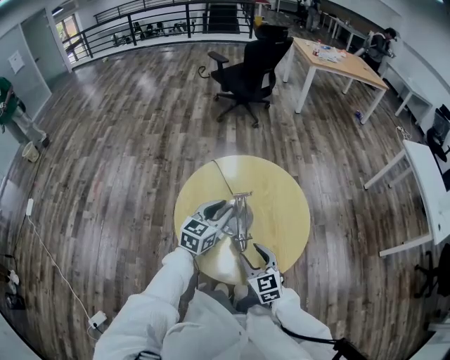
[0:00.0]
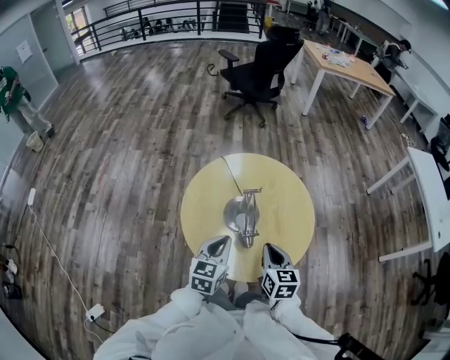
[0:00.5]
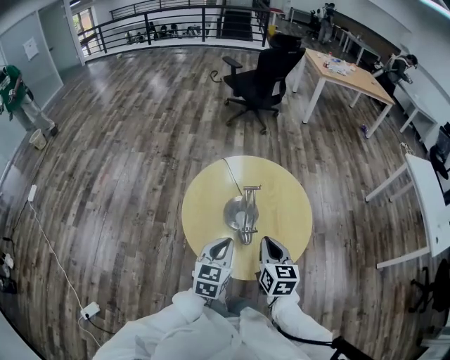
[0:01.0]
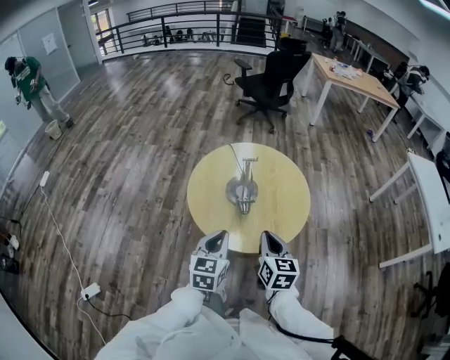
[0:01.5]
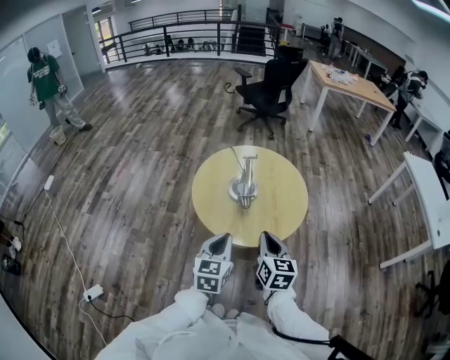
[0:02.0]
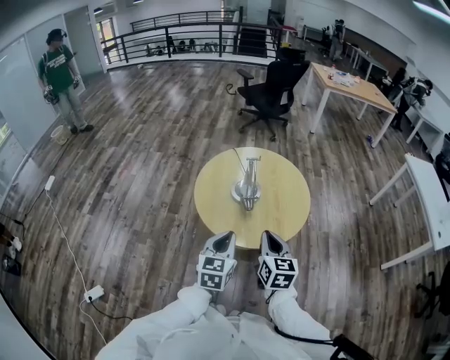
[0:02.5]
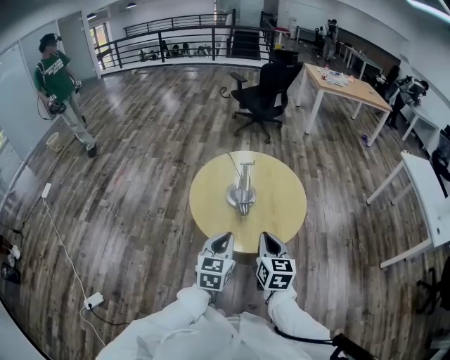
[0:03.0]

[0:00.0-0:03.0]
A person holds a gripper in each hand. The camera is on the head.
0:00.0 to 0:01.5: The left gripper goes roughly 25 cm backward, turns by approximately 20 degrees, and closes its fingers; the right gripper is displaced backward, upward and to the right by approximately 15 cm, rotates about 20 degrees, and closes.

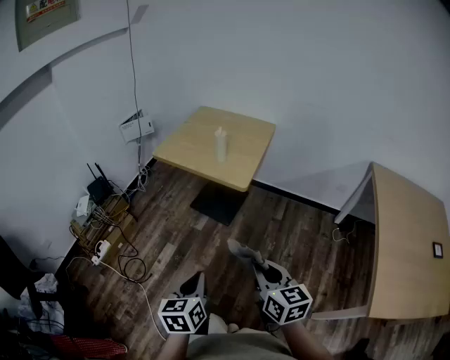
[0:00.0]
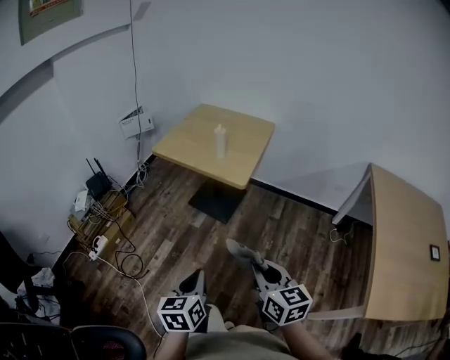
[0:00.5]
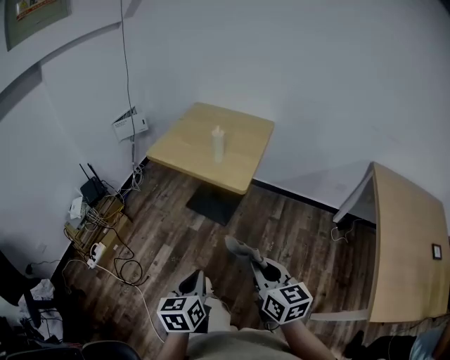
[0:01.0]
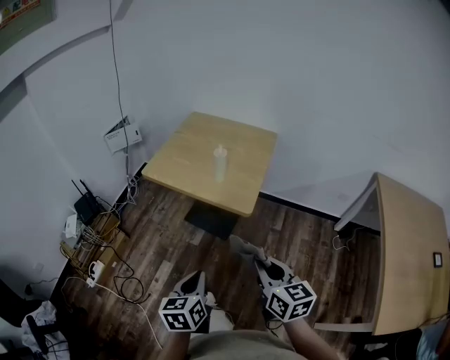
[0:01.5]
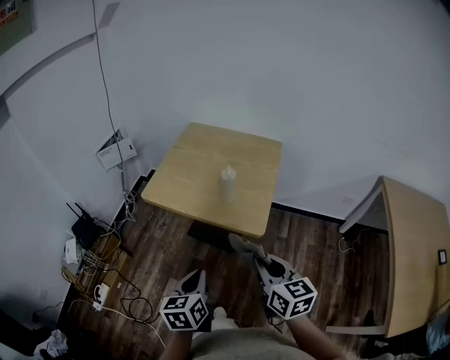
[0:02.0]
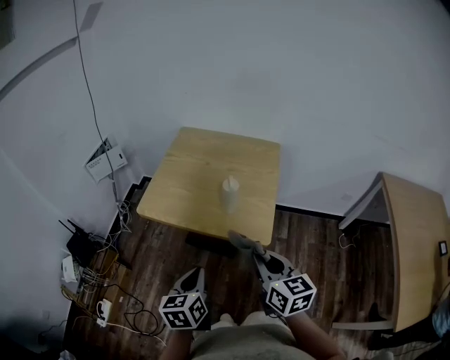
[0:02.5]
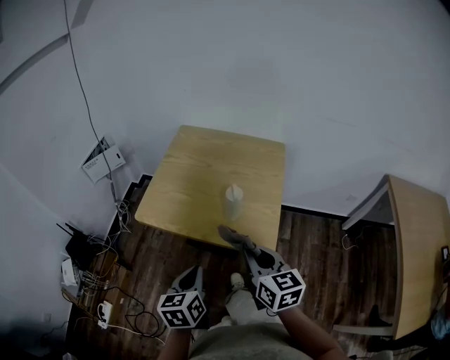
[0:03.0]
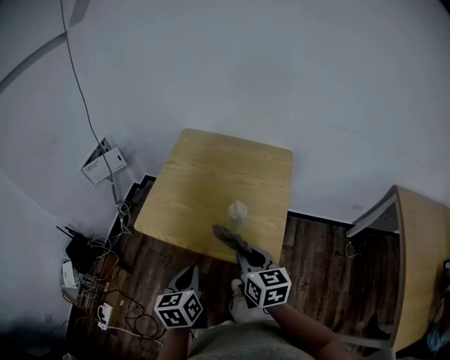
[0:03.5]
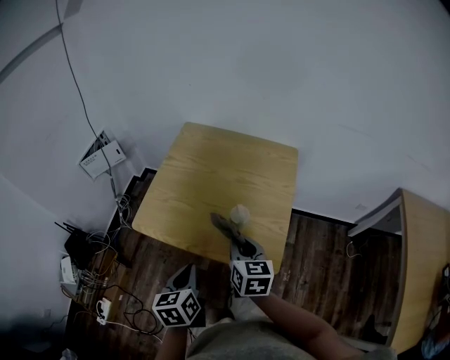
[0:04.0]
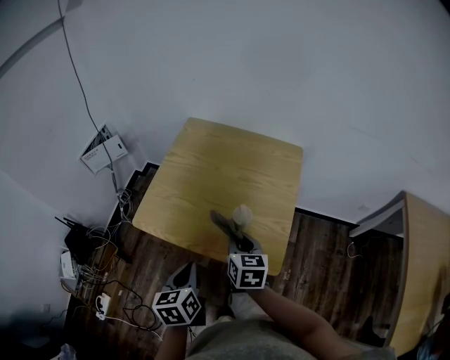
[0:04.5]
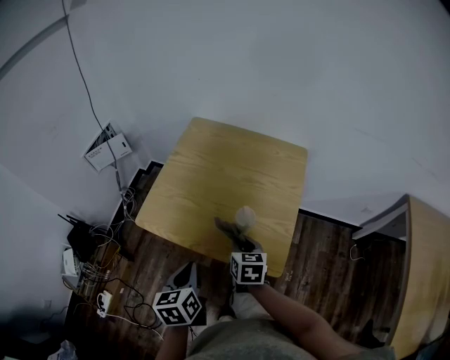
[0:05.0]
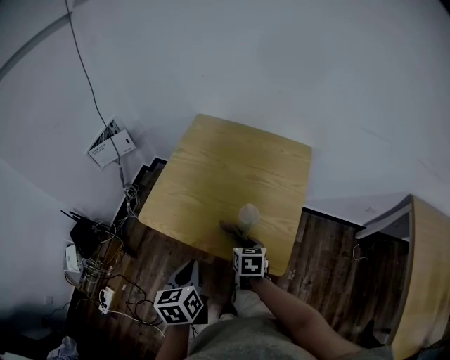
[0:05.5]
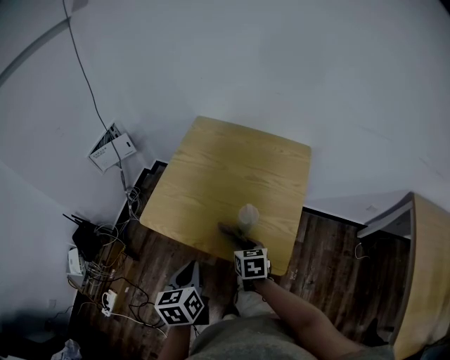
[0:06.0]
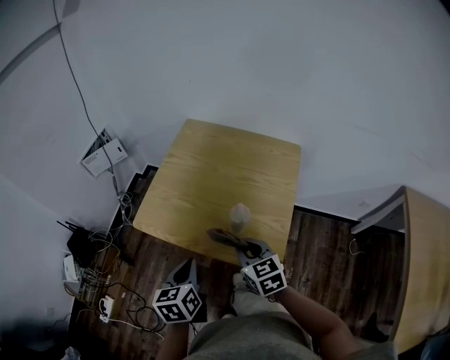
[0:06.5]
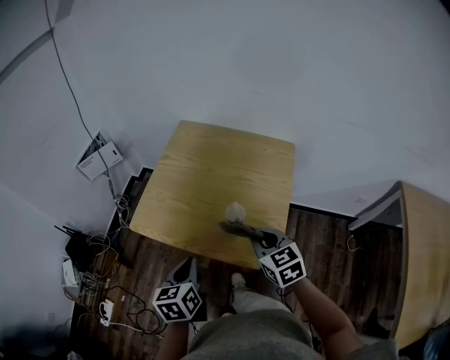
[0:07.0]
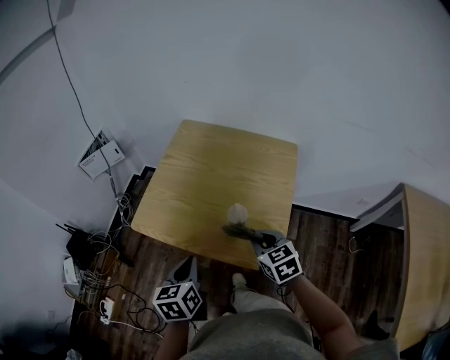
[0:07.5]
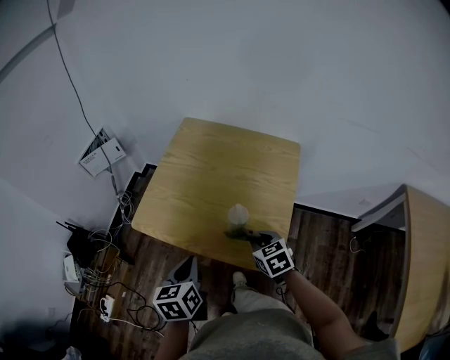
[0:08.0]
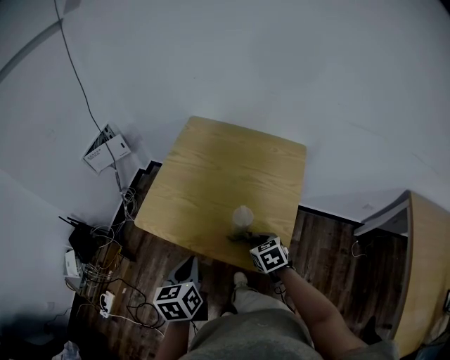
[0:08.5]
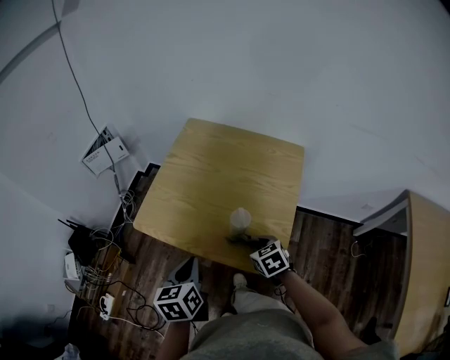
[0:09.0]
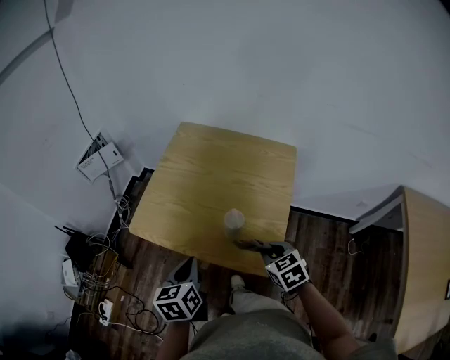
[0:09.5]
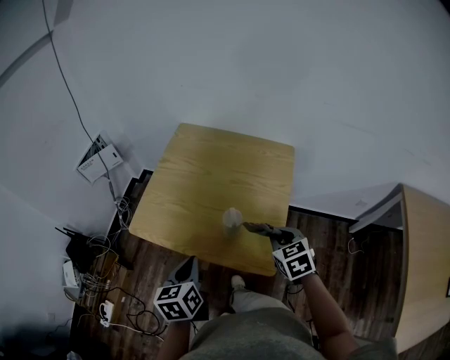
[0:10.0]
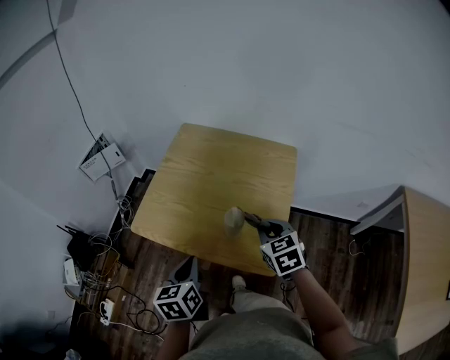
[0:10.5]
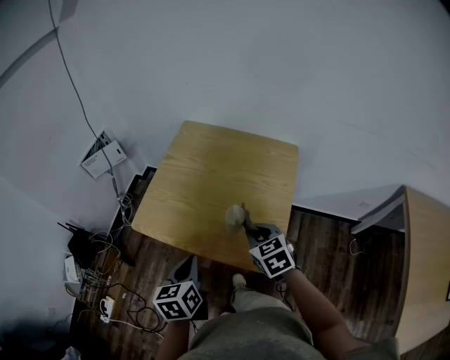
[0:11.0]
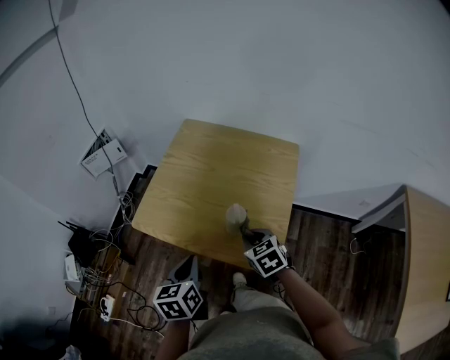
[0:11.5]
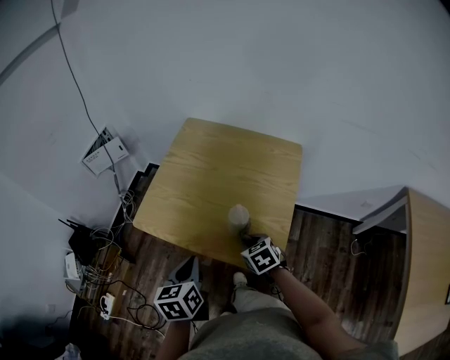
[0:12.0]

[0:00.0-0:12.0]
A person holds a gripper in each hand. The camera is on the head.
0:00.0 to 0:02.0: Both grippers travel together forward, some 30 cm.
0:02.0 to 0:04.0: The grippers both shift forward by roughly 25 cm.
0:04.0 to 0:06.0: The right gripper travels downward by some 10 cm, and turns by some 20 degrees.
0:06.0 to 0:08.0: The right gripper moves to the right, some 5 cm, and reaches some 15 cm upward, then returns.
0:08.0 to 0:10.0: The right gripper goes about 10 cm to the right and upward.
0:10.0 to 0:12.0: The right gripper moves to the left and downward, about 15 cm.

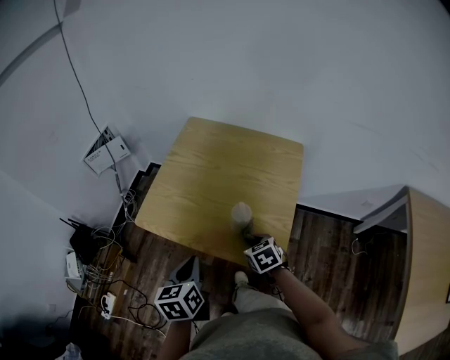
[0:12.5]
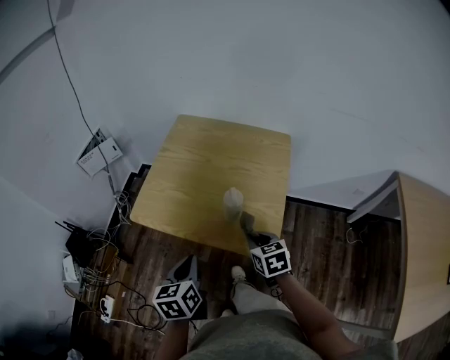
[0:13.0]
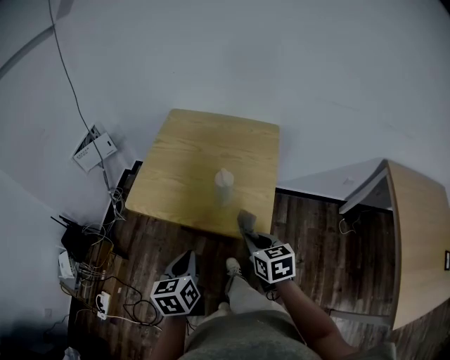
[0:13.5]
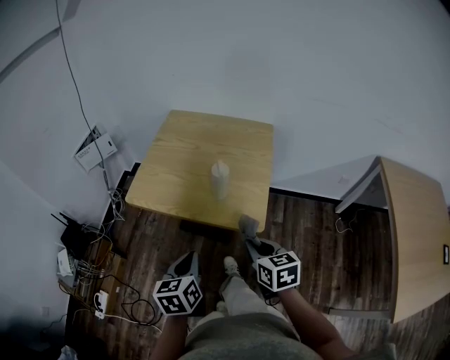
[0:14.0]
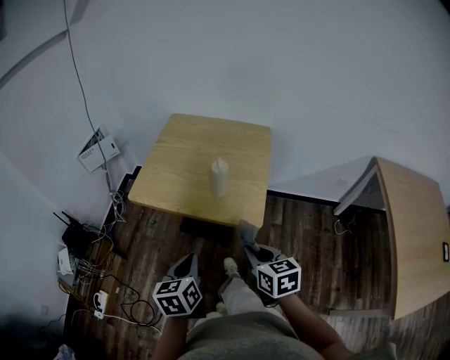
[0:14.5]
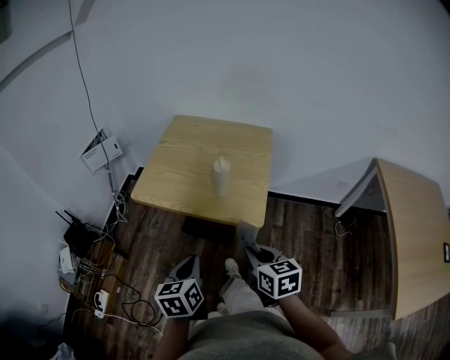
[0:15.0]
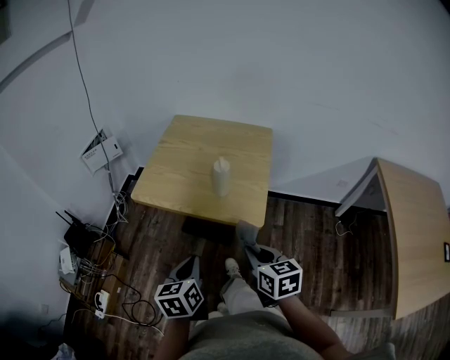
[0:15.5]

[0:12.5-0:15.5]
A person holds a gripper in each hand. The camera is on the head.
0:12.5 to 0:14.0: The right gripper is displaced backward and upward by roughly 20 cm, and rotates approximately 30 degrees, while the left gripper heads backward, covering approximately 15 cm.
0:14.0 to 0:15.5: The left gripper moves about 5 cm, while the right gripper travels backward by roughly 5 cm.

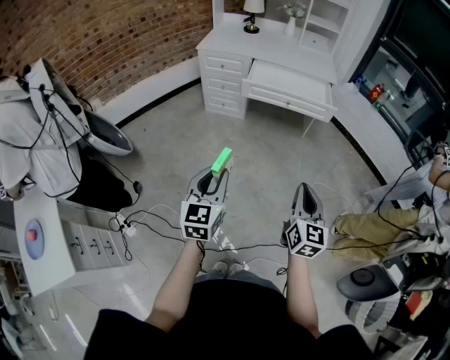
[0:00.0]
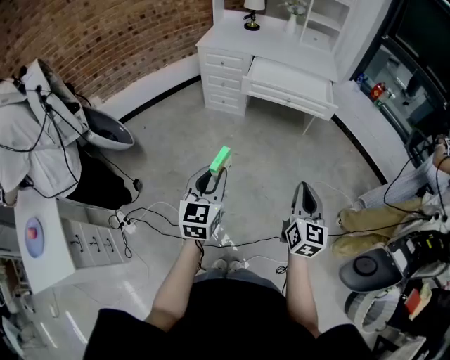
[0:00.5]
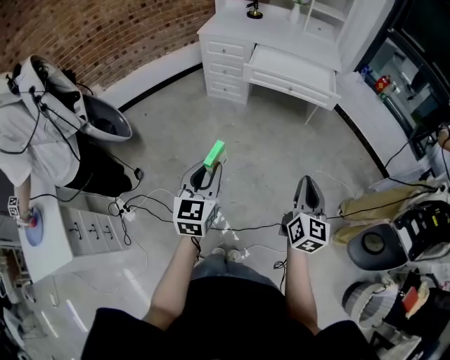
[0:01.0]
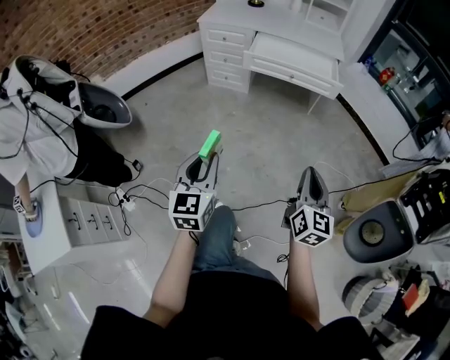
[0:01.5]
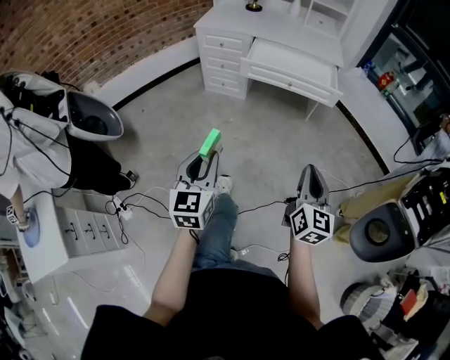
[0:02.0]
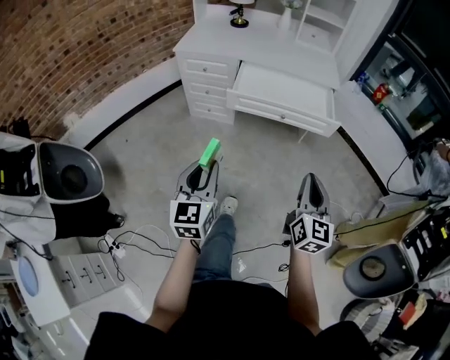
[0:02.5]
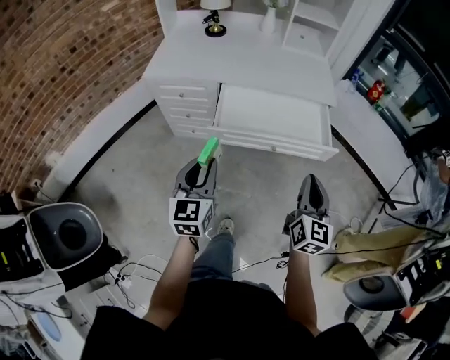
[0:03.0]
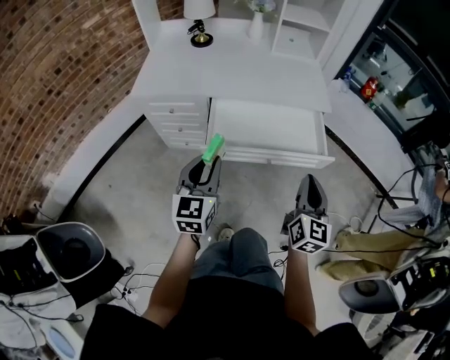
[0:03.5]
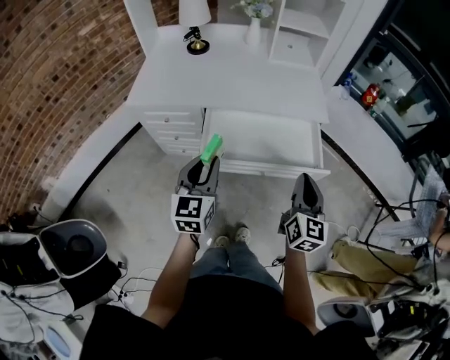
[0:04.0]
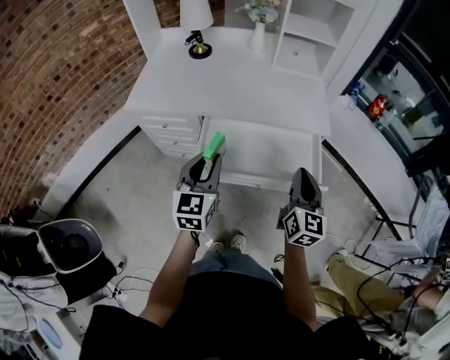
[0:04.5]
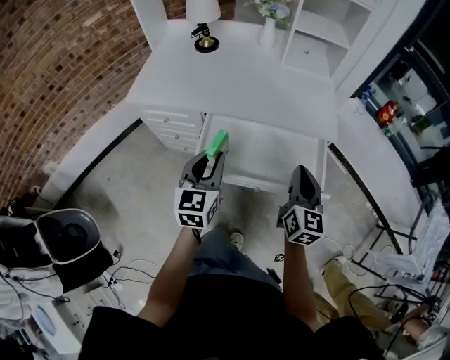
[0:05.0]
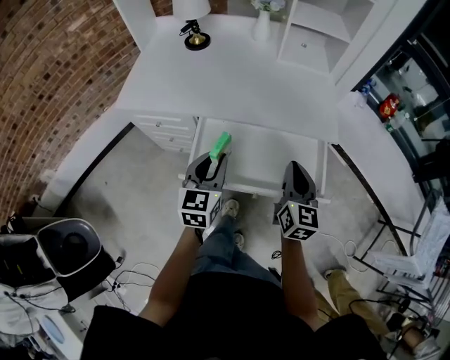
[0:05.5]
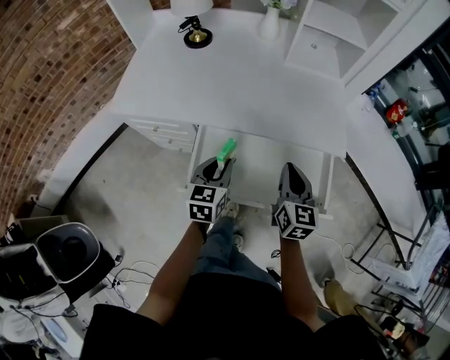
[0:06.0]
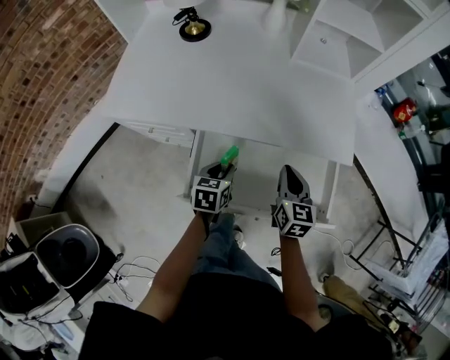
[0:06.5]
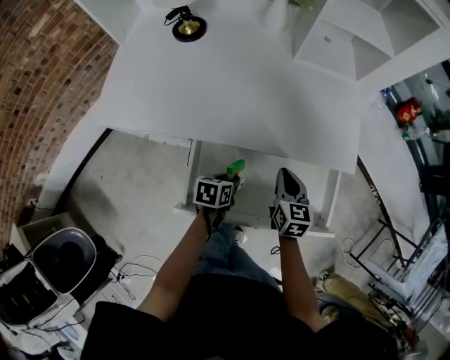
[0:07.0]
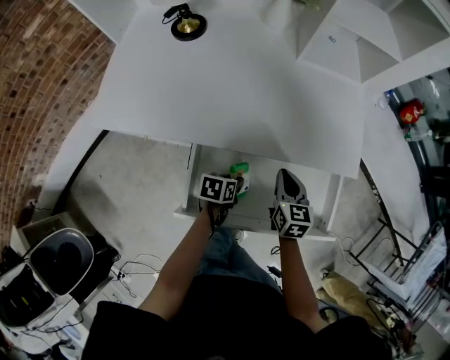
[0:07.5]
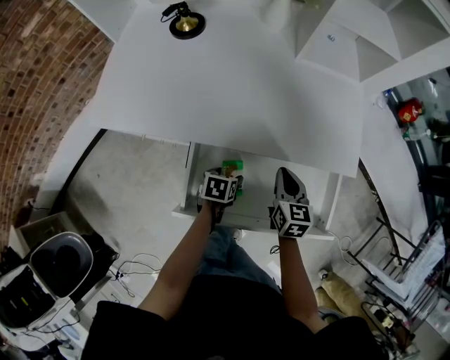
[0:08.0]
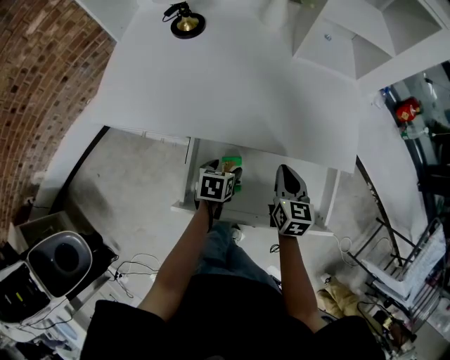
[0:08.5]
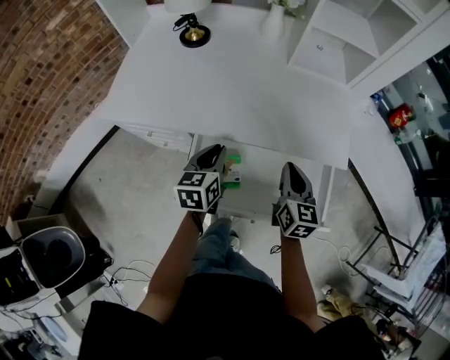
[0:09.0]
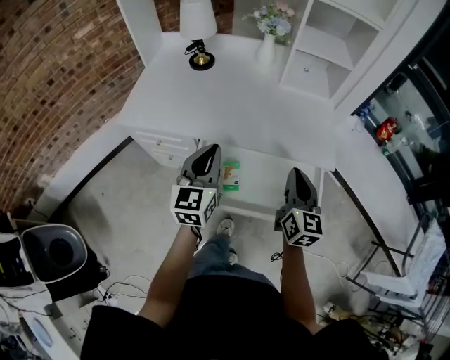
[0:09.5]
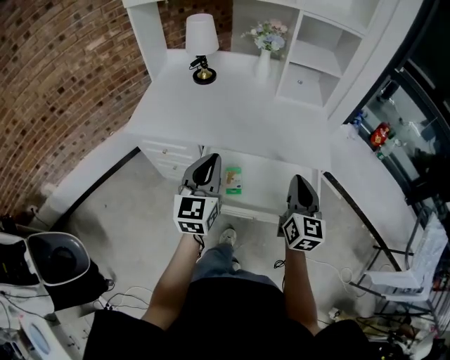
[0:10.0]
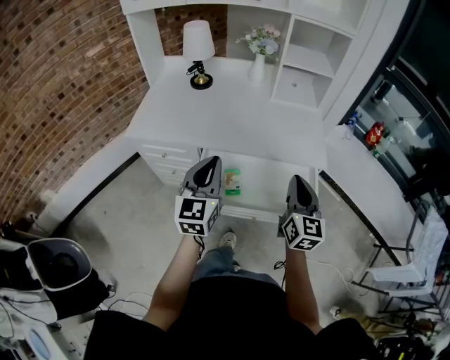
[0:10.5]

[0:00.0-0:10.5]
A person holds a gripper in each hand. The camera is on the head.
0:00.0 to 0:02.0: The right gripper ends up about 5 cm from where it was.
0:02.0 to 0:04.0: The two grippers travel together, forward, some 60 cm.
0:04.0 to 0:06.5: The grippers both shift forward and downward by roughly 35 cm. The left gripper tilts its fingers roughly 30 degrees downward. Meanwhile the right gripper swivels about 20 degrees.
0:06.5 to 0:08.5: The left gripper travels downward by about 5 cm, and opens up. The right gripper moves some 5 cm.
0:08.5 to 0:10.5: Both grippers move upward and backward, about 35 cm. The left gripper tips its fingers upward by some 50 degrees, and closes its fingers. Meanwhile the right gripper turns by about 30 degrees.
